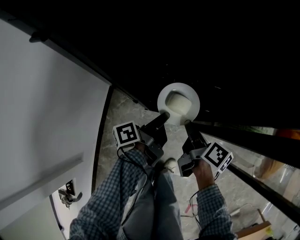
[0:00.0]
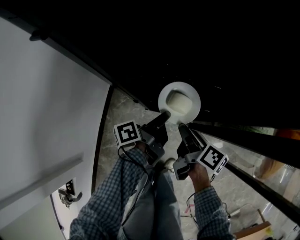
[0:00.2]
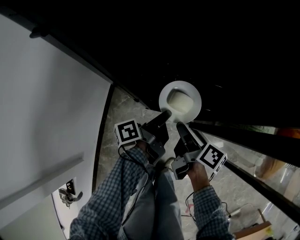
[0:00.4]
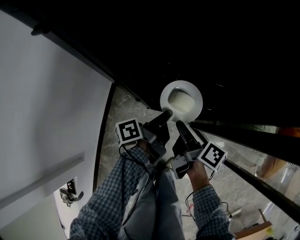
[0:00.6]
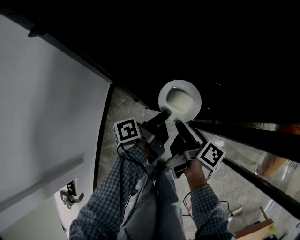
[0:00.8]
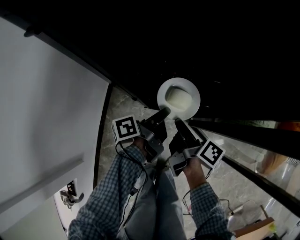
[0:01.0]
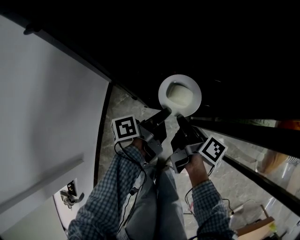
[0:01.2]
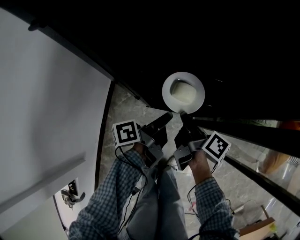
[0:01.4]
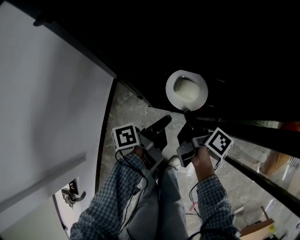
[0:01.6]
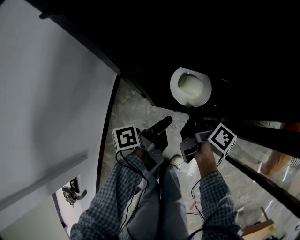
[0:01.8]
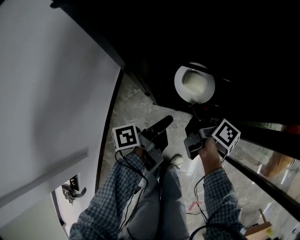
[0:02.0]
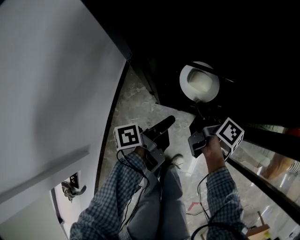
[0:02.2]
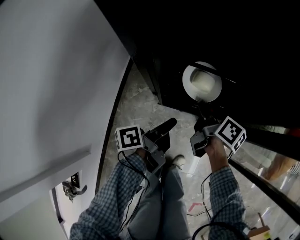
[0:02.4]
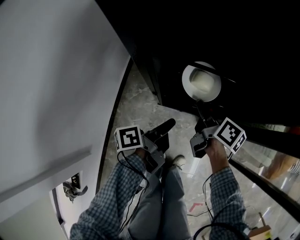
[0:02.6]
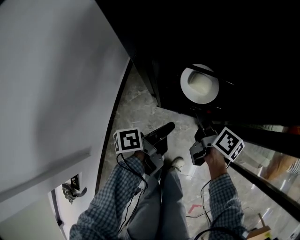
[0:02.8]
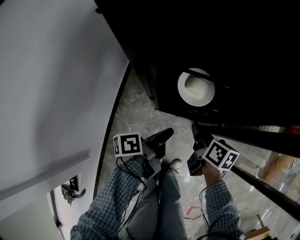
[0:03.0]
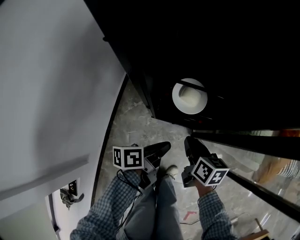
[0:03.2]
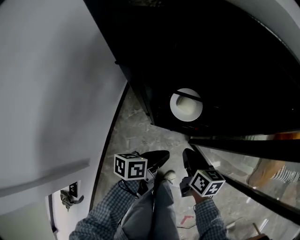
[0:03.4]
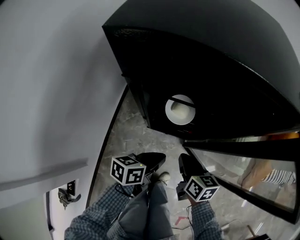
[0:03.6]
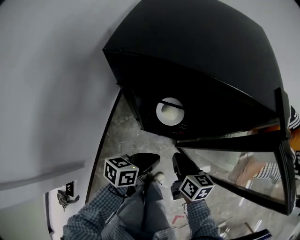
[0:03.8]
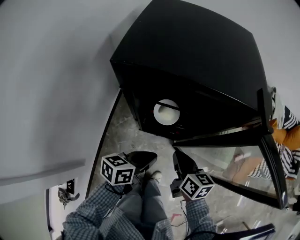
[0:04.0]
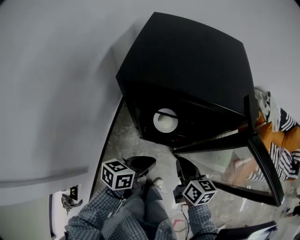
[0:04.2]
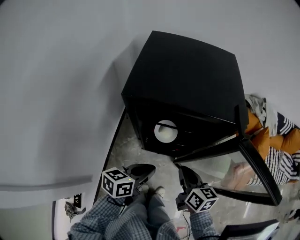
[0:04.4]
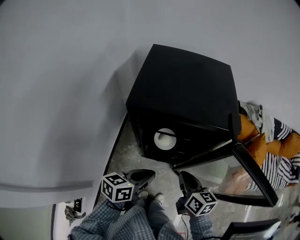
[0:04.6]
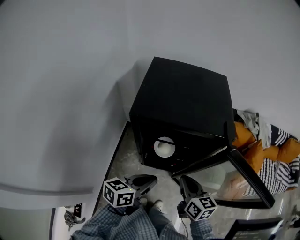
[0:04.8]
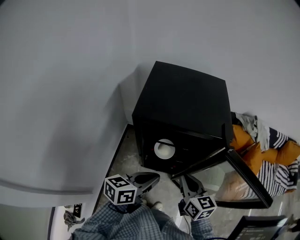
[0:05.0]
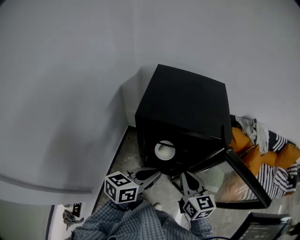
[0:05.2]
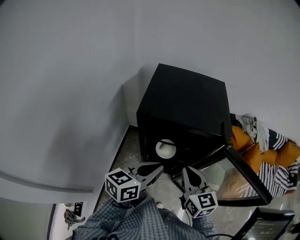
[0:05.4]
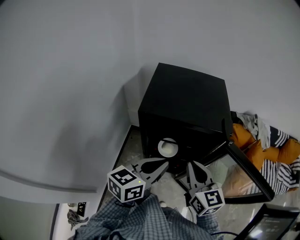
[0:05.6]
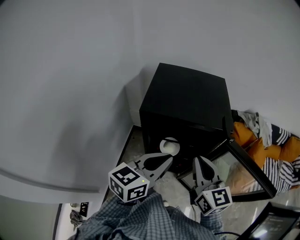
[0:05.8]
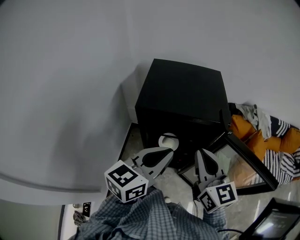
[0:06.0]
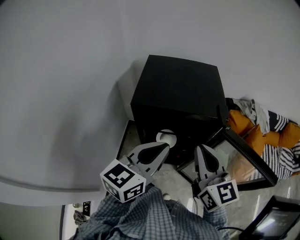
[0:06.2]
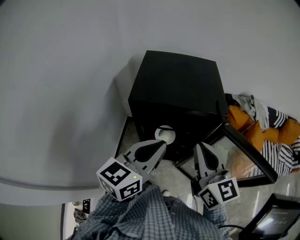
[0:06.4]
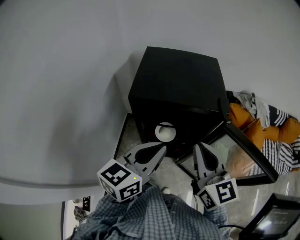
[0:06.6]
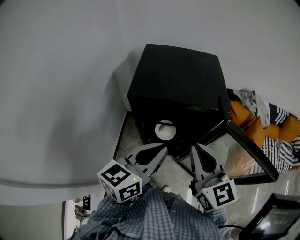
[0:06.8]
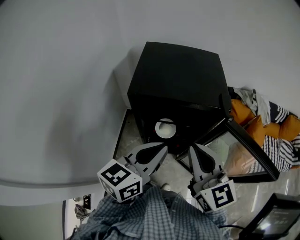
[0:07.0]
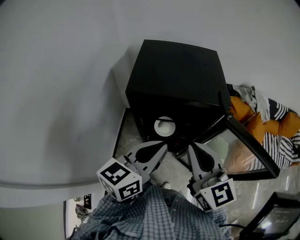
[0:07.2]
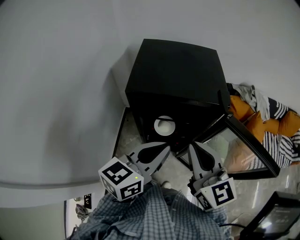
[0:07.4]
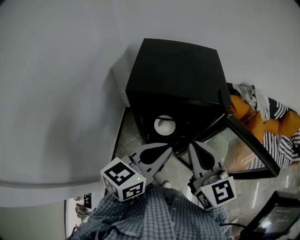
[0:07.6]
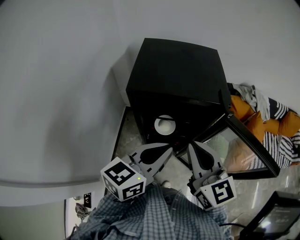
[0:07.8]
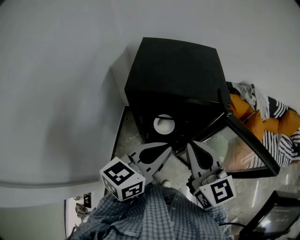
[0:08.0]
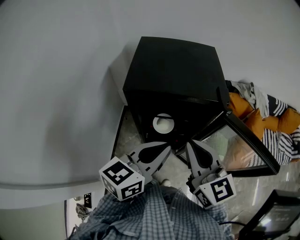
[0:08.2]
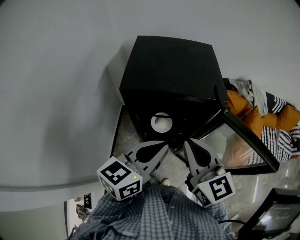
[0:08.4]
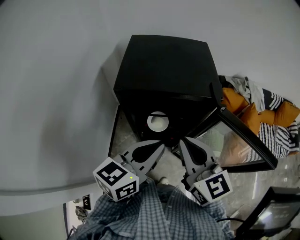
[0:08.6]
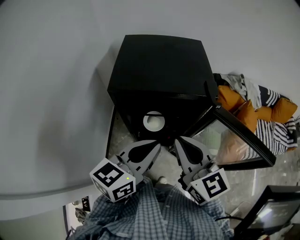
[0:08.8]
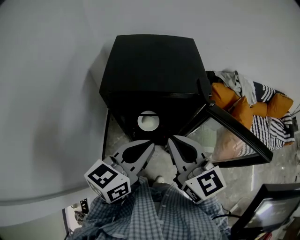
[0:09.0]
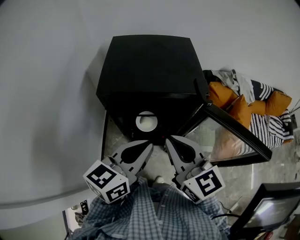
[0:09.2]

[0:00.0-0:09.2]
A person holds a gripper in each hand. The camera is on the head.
1.6 to 3.0 s: The right gripper turns by roughly 30 degrees, and opens, then closes again.
3.0 to 4.6 s: The right gripper is displaced upward by about 30 cm, and swivels approximately 20 degrees.
4.6 to 6.2 s: The right gripper travels upward by some 25 cm, and rotates some 40 degrees.

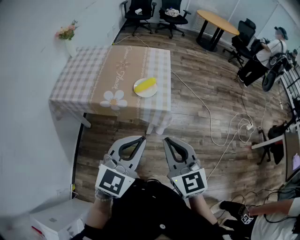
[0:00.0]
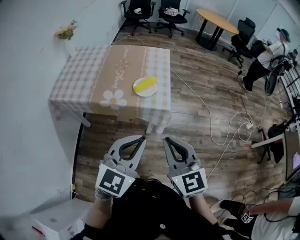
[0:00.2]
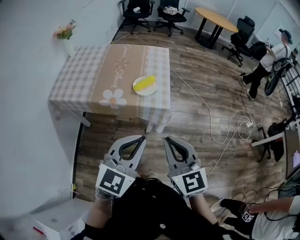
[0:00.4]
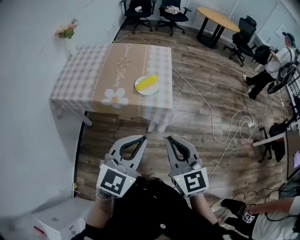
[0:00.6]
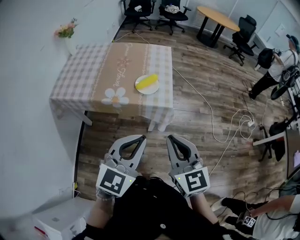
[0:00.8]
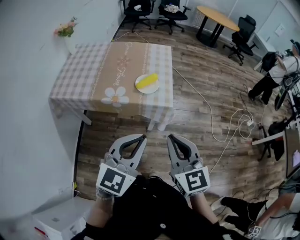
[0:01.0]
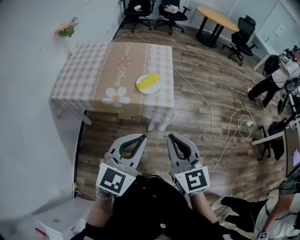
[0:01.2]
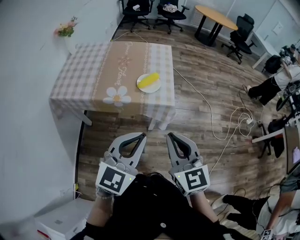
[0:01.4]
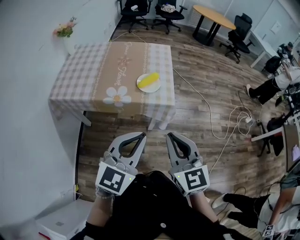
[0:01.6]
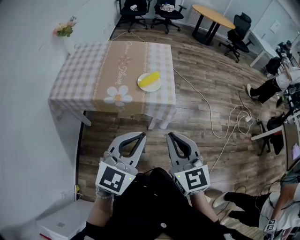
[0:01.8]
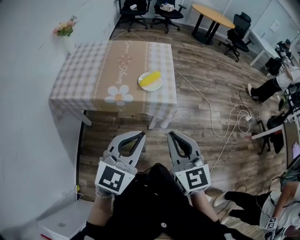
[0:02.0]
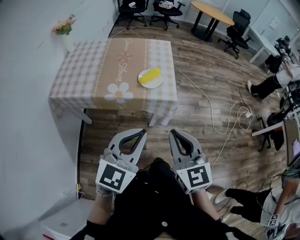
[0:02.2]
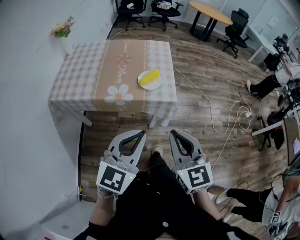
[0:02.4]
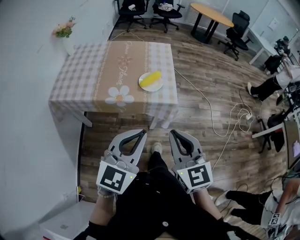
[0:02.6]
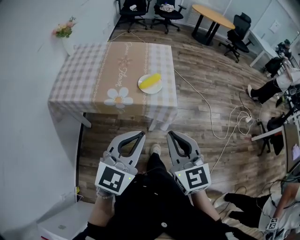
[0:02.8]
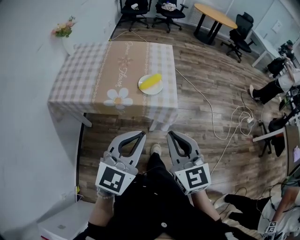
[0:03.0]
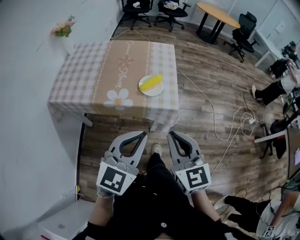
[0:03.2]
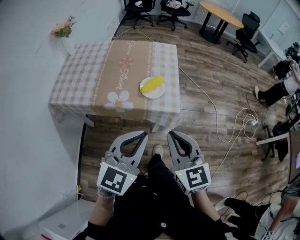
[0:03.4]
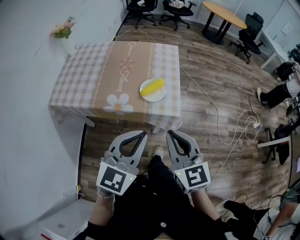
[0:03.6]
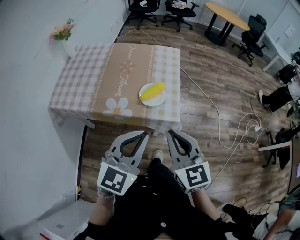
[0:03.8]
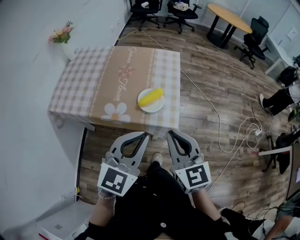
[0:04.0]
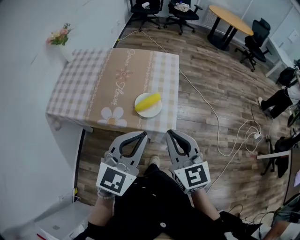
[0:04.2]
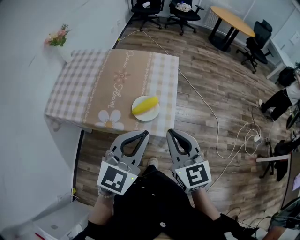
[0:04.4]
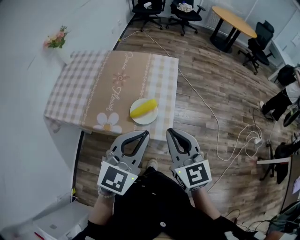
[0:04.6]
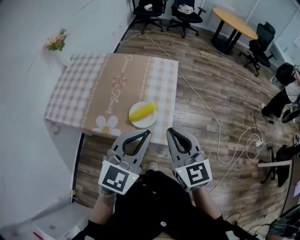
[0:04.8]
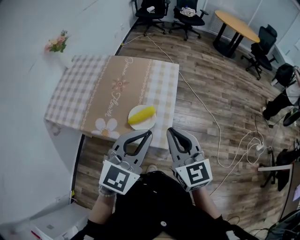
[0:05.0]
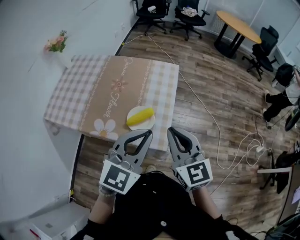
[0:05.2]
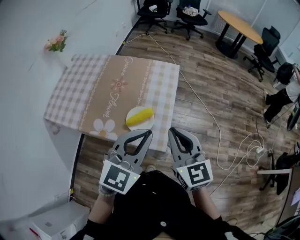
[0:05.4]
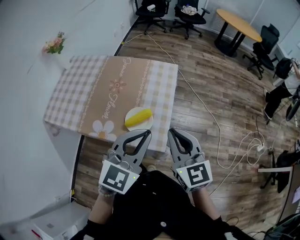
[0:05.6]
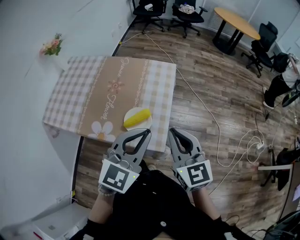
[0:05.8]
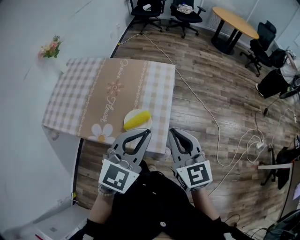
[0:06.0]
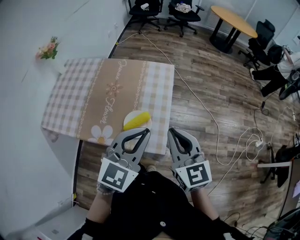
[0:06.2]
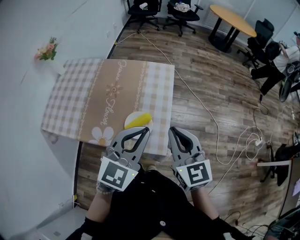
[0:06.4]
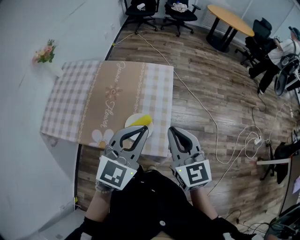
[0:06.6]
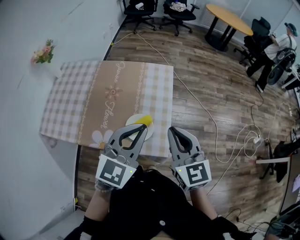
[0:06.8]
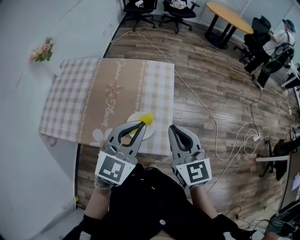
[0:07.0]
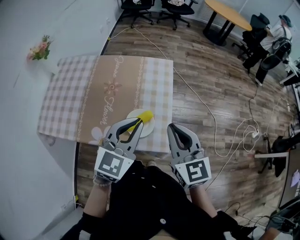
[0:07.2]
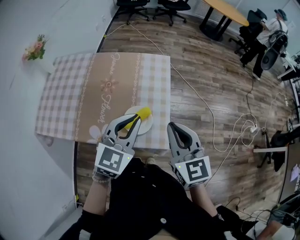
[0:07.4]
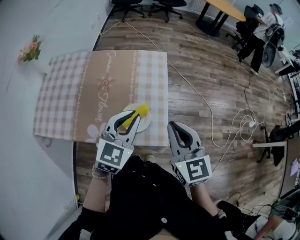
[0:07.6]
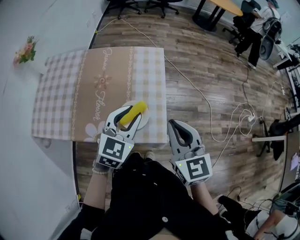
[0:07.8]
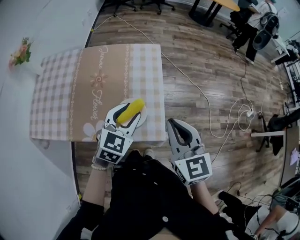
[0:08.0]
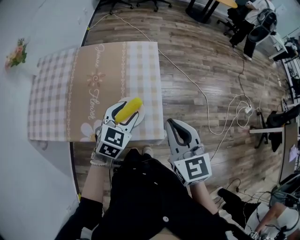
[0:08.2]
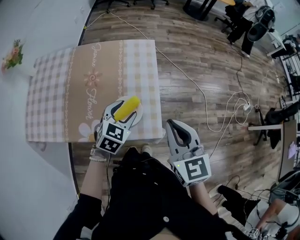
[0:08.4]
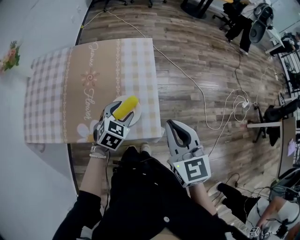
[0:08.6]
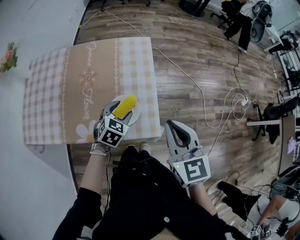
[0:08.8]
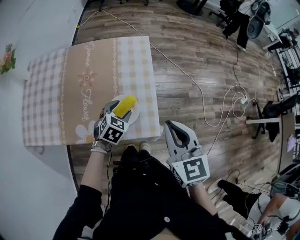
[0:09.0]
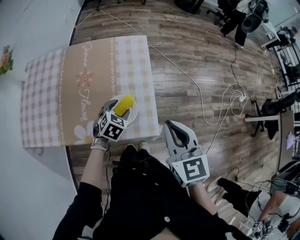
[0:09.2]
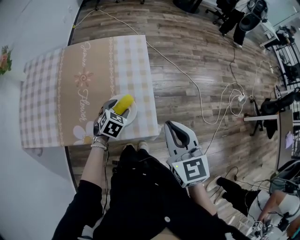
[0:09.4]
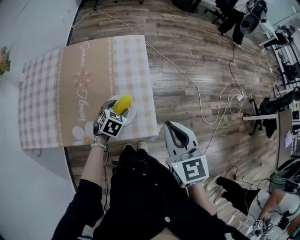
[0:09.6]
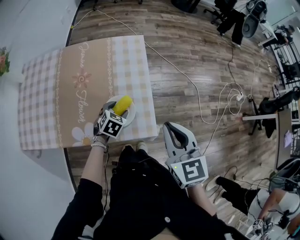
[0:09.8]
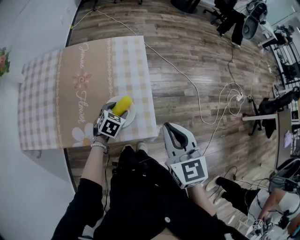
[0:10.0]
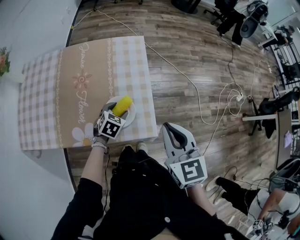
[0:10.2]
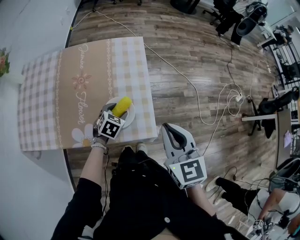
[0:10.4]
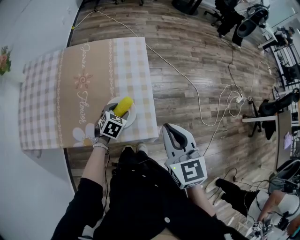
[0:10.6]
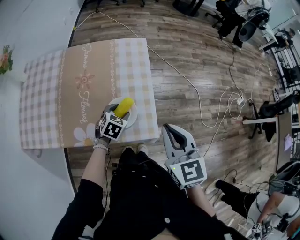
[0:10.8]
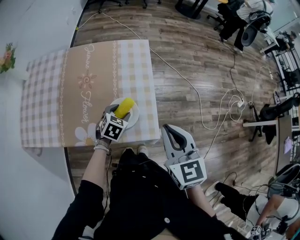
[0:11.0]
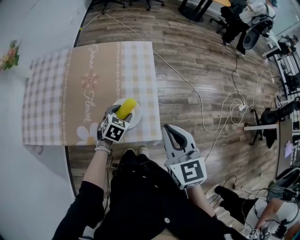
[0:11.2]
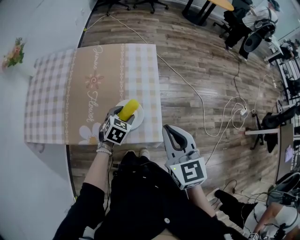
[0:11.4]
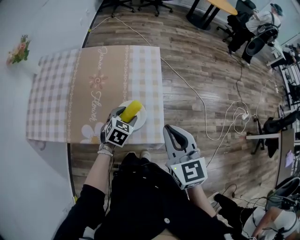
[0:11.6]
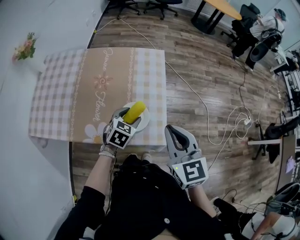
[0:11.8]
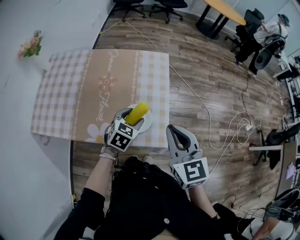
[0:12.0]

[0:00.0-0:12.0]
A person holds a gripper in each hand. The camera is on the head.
0.0 to 1.6 s: There are only small adjustments of the grippers.
1.6 to 3.0 s: The grippers make only small movements.
3.0 to 4.4 s: The grippers both shift forward by some 20 cm.
4.4 to 6.0 s: The grippers both shift forward and to the right by about 10 cm.
6.0 to 7.6 s: The left gripper goes approximately 10 cm downward, forward and to the left.
7.6 to 9.0 s: The left gripper shifts some 20 cm downward, rotates about 30 degrees, and opens up.
9.0 to 10.4 s: The grippers make only small movements.
10.4 to 12.0 s: The left gripper travels upward by about 10 cm. Meanwhile the right gripper shifts by approximately 5 cm.

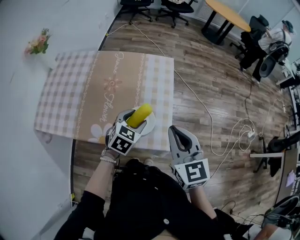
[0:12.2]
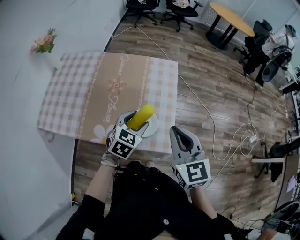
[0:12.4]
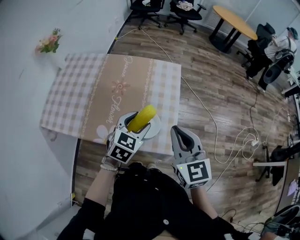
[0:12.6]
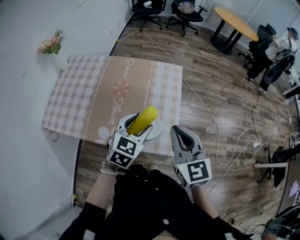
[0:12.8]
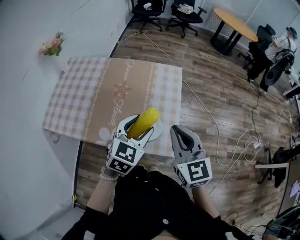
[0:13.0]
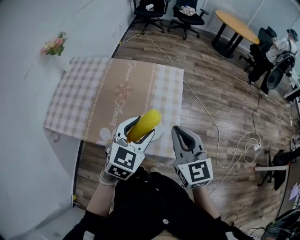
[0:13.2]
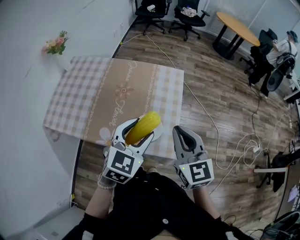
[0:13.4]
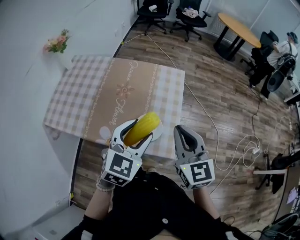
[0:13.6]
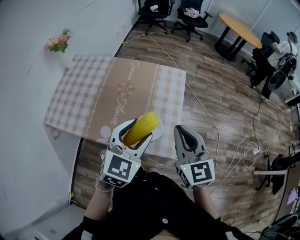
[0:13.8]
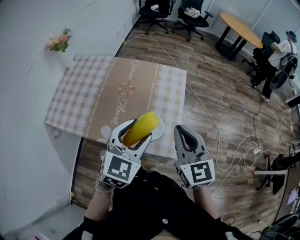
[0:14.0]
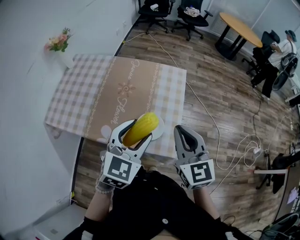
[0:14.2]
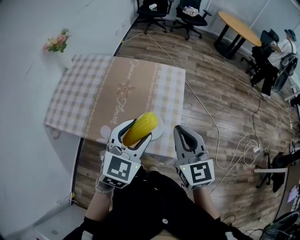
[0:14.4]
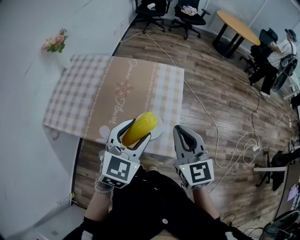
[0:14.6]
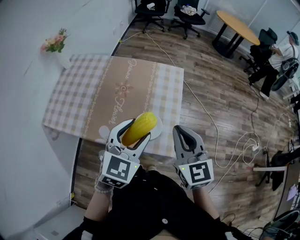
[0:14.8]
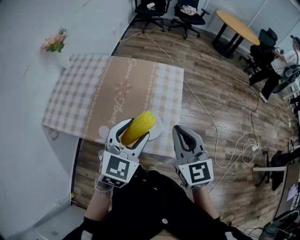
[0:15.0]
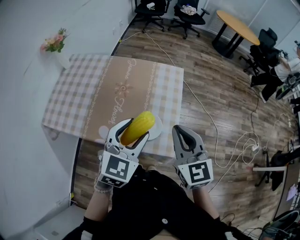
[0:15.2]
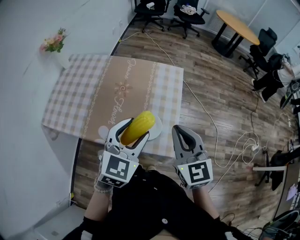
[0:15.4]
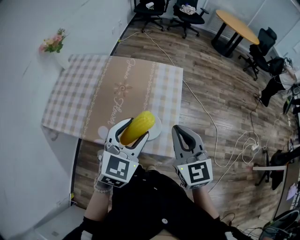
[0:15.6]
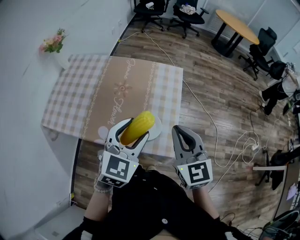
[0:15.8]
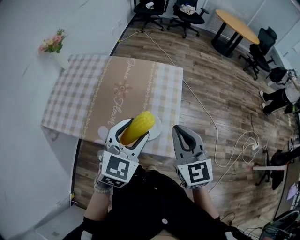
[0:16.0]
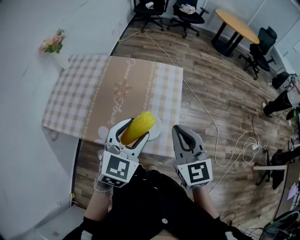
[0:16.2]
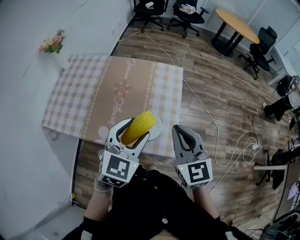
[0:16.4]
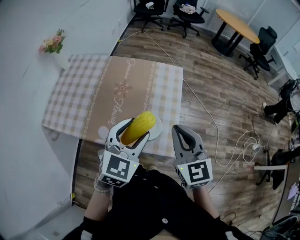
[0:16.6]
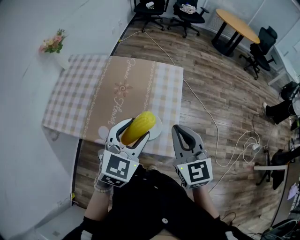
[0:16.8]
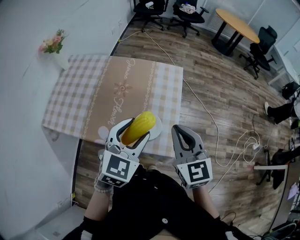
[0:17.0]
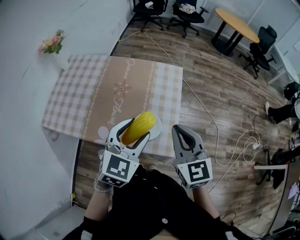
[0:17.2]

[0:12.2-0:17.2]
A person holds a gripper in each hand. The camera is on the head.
12.2 to 13.8 s: The left gripper heads upward, covering approximately 15 cm, and changes its angle by about 20 degrees.
13.8 to 15.6 s: The grippers make only small movements.
15.6 to 17.2 s: Neither gripper changes place.
